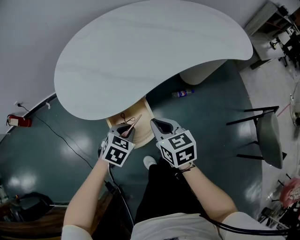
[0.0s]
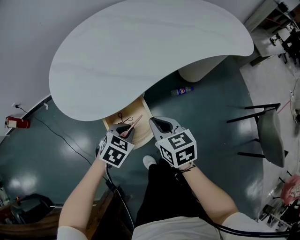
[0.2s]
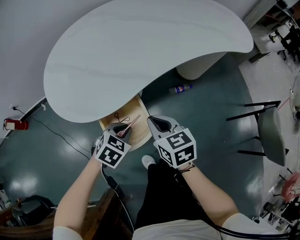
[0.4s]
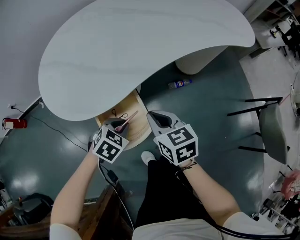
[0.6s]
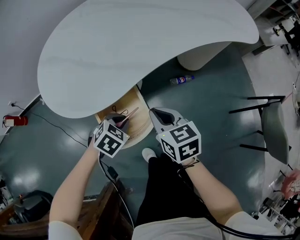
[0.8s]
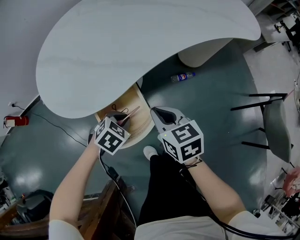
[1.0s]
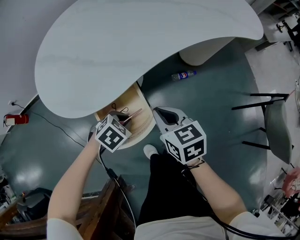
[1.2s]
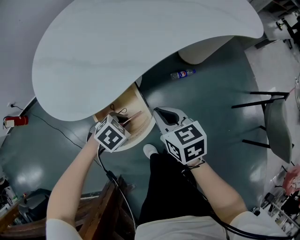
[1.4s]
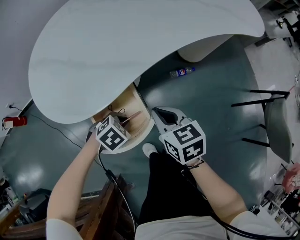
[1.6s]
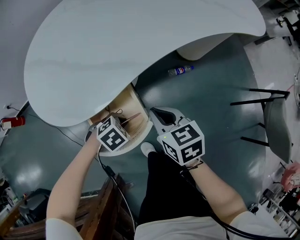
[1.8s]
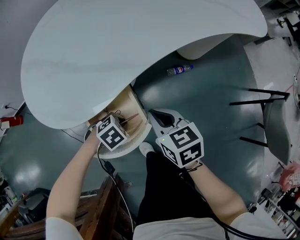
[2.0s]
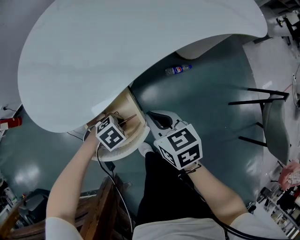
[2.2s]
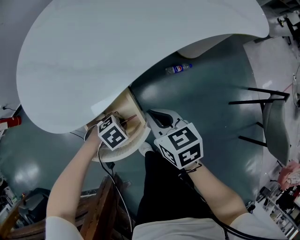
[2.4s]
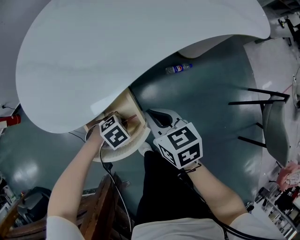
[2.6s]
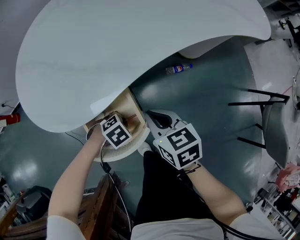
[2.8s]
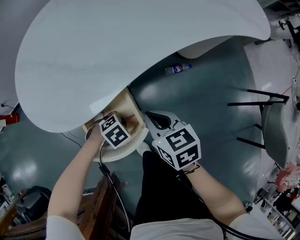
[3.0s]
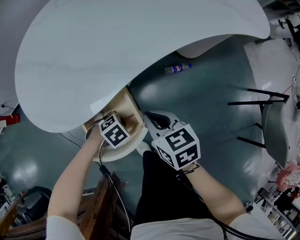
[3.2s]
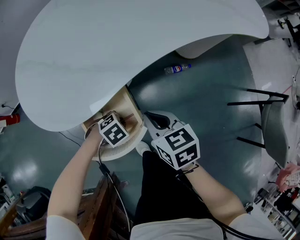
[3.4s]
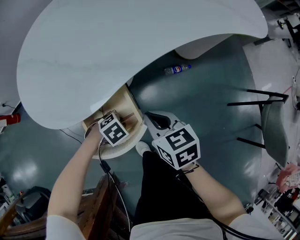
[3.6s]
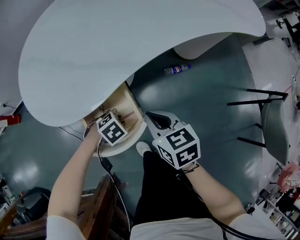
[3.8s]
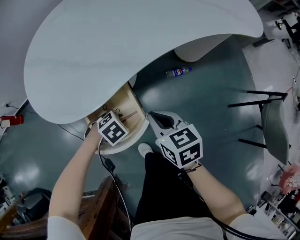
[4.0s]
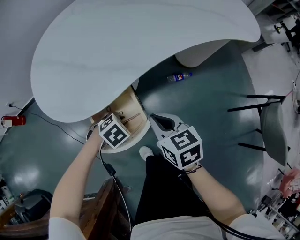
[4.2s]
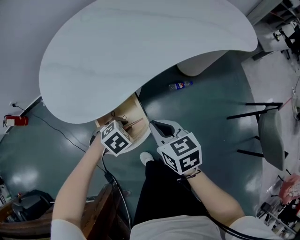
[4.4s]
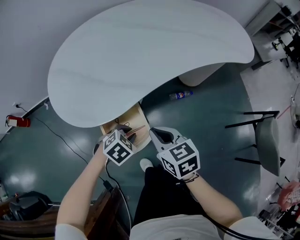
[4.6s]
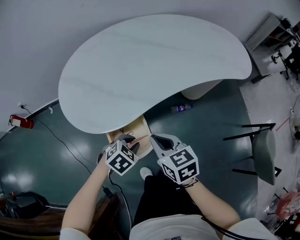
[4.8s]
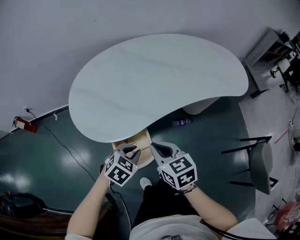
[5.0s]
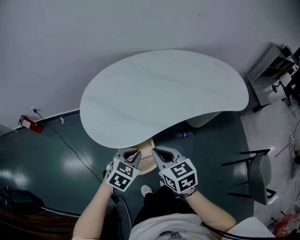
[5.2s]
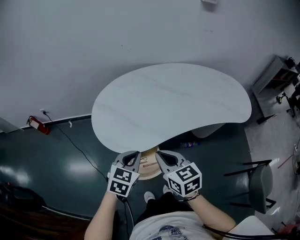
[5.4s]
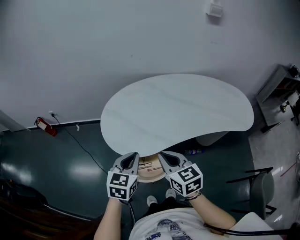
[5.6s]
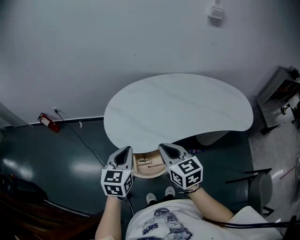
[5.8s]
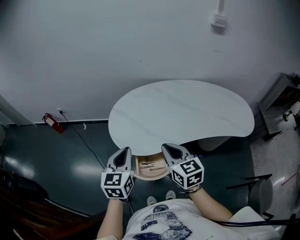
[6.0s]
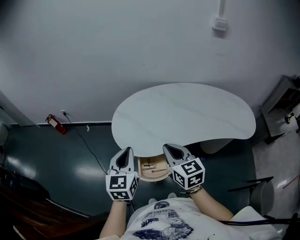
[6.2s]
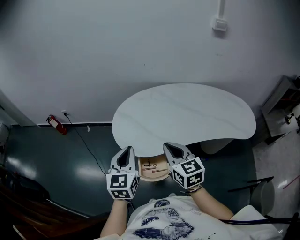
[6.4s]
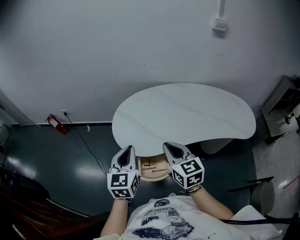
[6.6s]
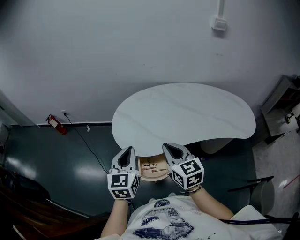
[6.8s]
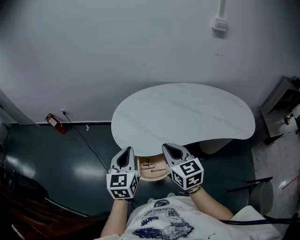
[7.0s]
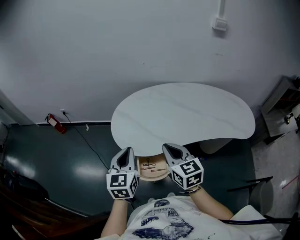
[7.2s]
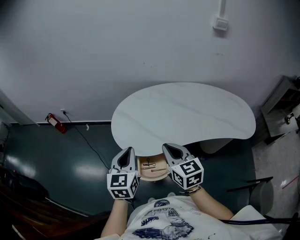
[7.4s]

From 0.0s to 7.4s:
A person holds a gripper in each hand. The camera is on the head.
From 0.0s to 1.4s: The right gripper is displaced downward by about 5 cm, while the left gripper moves downward, roughly 10 cm, and rotates roughly 30 degrees.
From 1.4s to 3.0s: The left gripper is displaced downward by approximately 10 cm.
From 3.0s to 4.4s: The left gripper moves upward, some 10 cm, while the right gripper is displaced upward by approximately 5 cm.
From 4.4s to 6.0s: The two grippers go approximately 35 cm upward. The left gripper tips its fingers upward by about 50 degrees; the right gripper changes its angle by some 30 degrees.
From 6.0s to 7.4s: The grippers stay close to where they were, moving slightly.

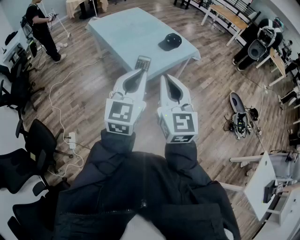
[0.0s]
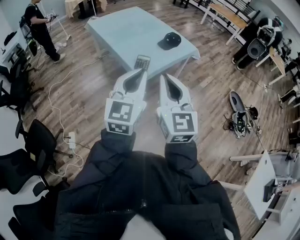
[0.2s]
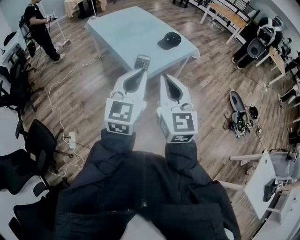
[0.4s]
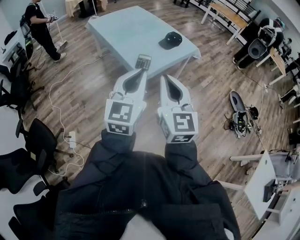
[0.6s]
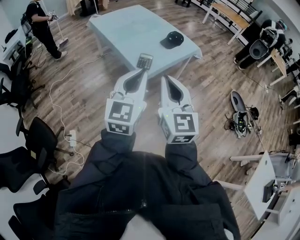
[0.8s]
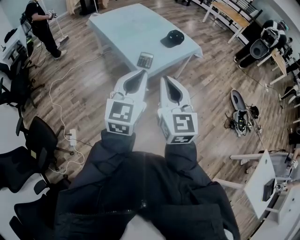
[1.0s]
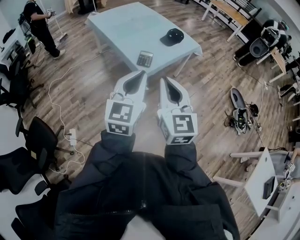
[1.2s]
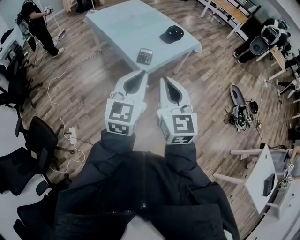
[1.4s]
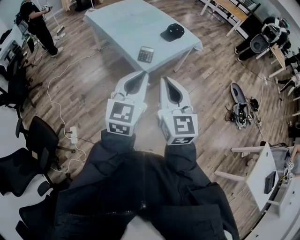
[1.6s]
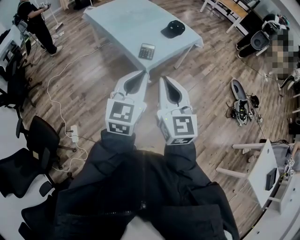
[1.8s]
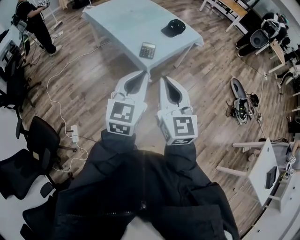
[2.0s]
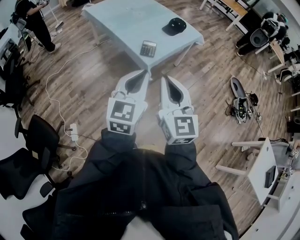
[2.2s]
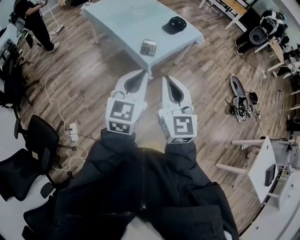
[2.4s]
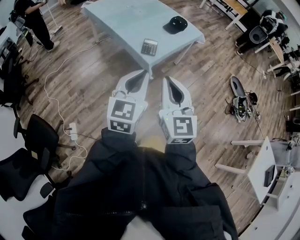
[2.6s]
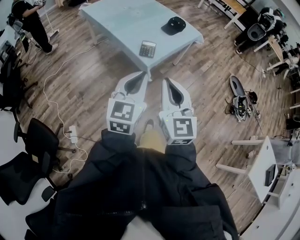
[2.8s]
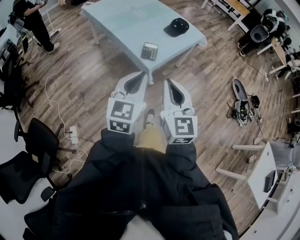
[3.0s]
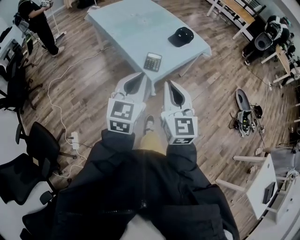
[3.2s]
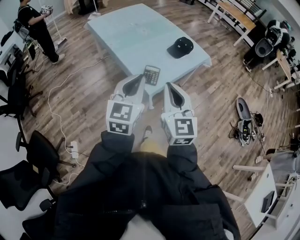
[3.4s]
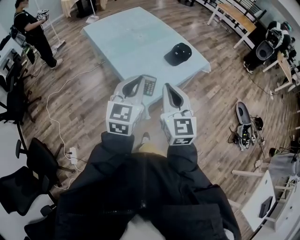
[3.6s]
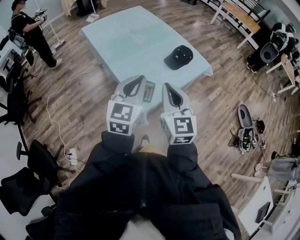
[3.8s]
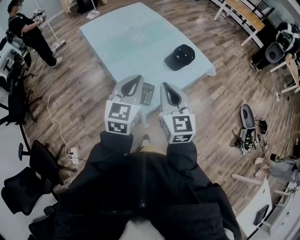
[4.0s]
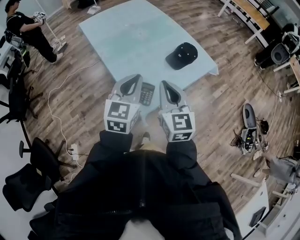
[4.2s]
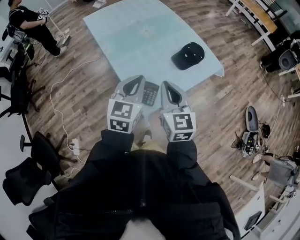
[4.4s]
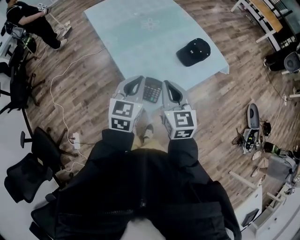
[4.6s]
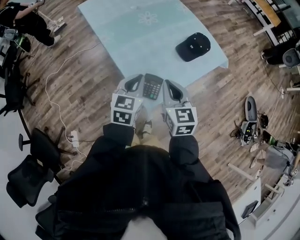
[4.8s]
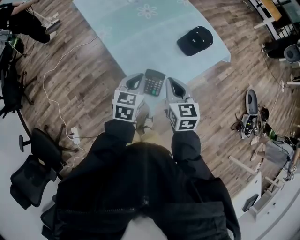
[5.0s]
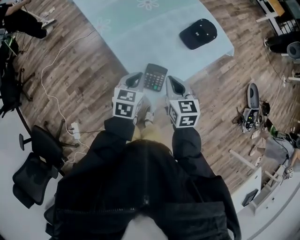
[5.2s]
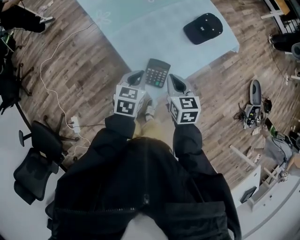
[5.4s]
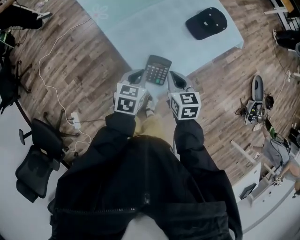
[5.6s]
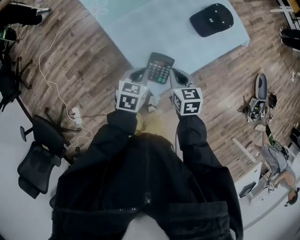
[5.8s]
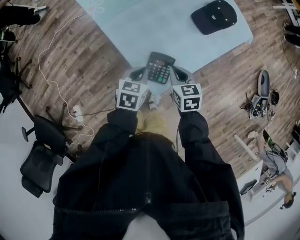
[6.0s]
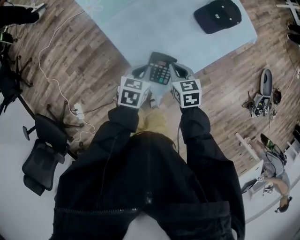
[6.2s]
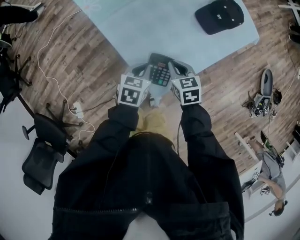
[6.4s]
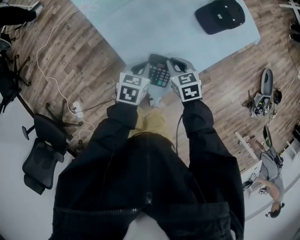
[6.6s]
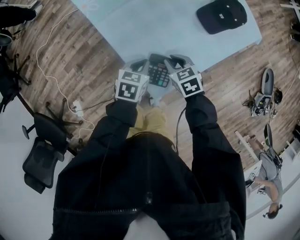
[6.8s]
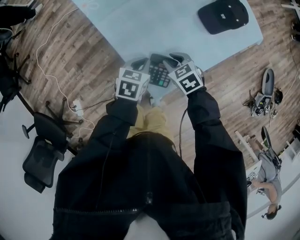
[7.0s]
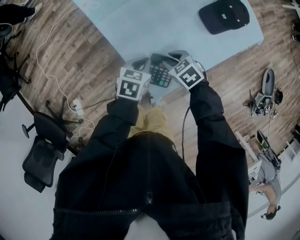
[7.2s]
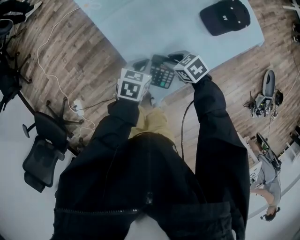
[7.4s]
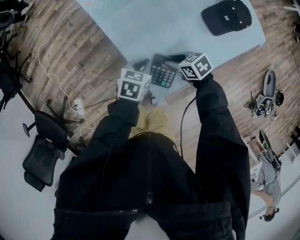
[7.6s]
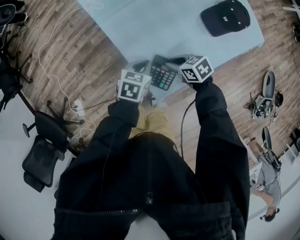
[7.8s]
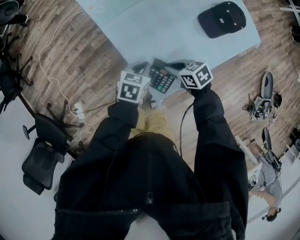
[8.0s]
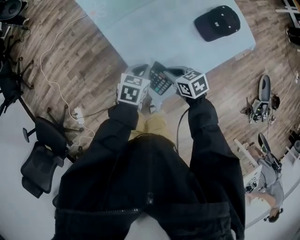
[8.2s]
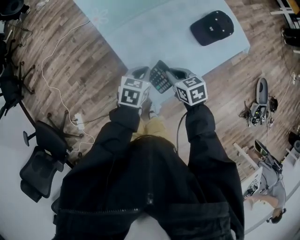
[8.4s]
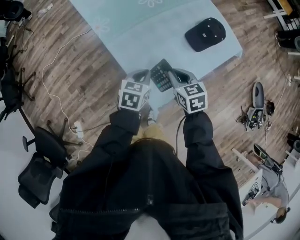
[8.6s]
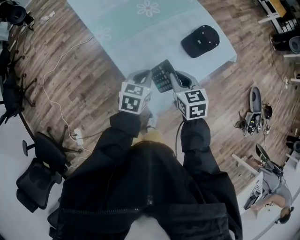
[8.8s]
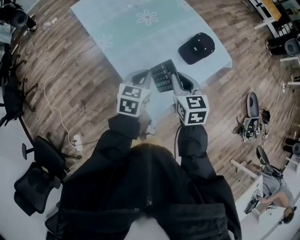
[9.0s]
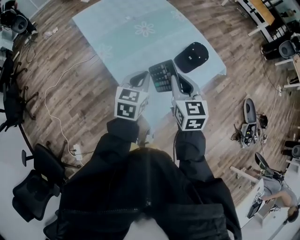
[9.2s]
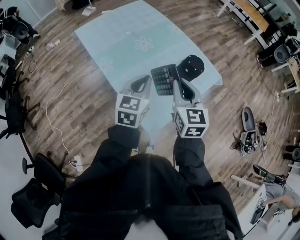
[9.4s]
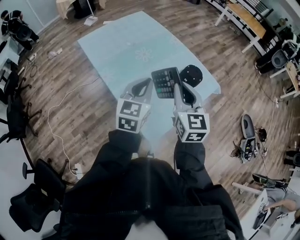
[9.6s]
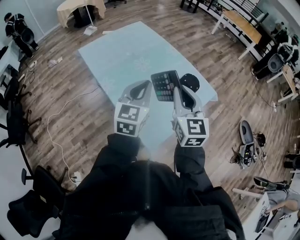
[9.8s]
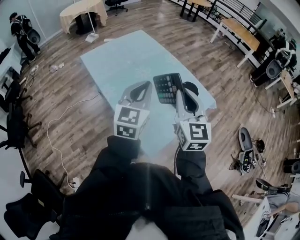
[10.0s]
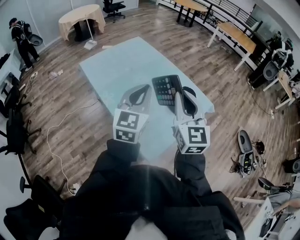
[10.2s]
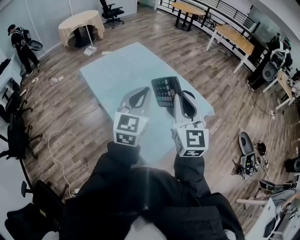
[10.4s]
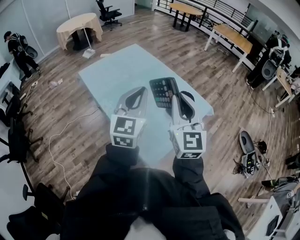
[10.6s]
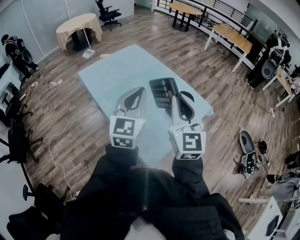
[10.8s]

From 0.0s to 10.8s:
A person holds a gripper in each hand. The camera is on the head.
From 0.0s to 1.6s: The left gripper shifts by approximately 5 cm. Meanwhile the right gripper shifts by roughly 5 cm.
From 1.6s to 3.0s: Both grippers move downward and forward, about 10 cm.
From 3.0s to 4.6s: The two grippers go approximately 40 cm forward.
From 4.6s to 6.2s: Both grippers move downward, some 30 cm. The left gripper rotates approximately 40 degrees. The right gripper tips its fingers downward by some 30 degrees.
From 6.2s to 7.8s: The right gripper goes about 5 cm downward, and swivels approximately 40 degrees.
From 7.8s to 9.2s: Both grippers travel together upward, some 30 cm. The right gripper changes its angle by approximately 60 degrees; the left gripper changes its angle by roughly 30 degrees.
From 9.2s to 10.8s: Both grippers move upward, about 20 cm. The left gripper rotates roughly 30 degrees; the right gripper turns by about 30 degrees.

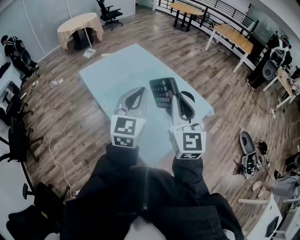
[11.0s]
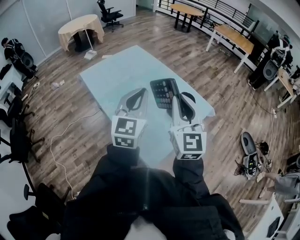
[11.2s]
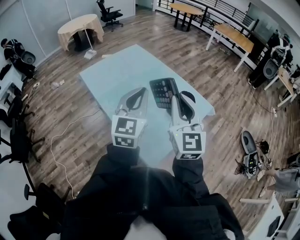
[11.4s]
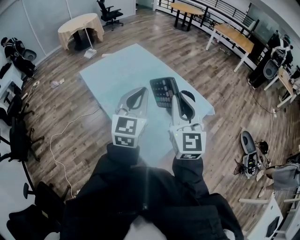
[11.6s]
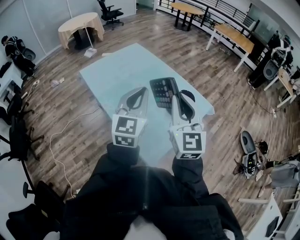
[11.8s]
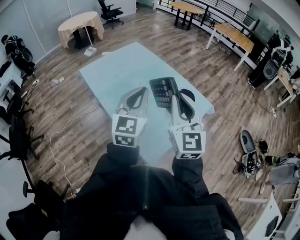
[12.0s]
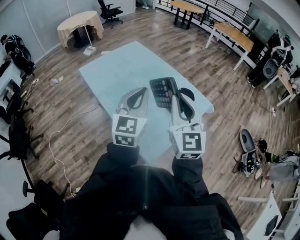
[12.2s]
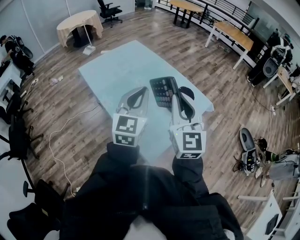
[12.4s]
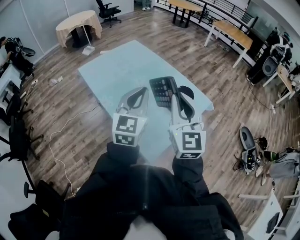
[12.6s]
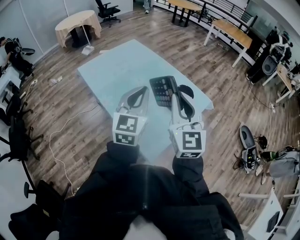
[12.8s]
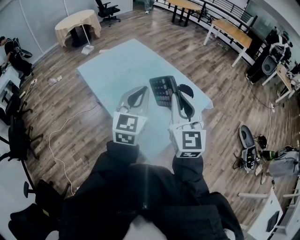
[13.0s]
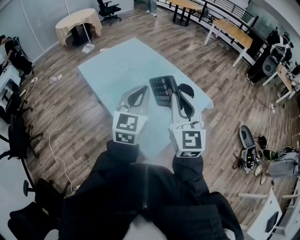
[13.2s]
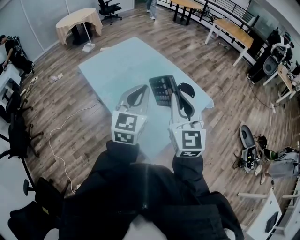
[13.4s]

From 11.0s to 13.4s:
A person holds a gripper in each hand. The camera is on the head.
From 11.0s to 13.4s: The grippers make only small movements.

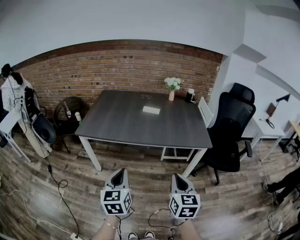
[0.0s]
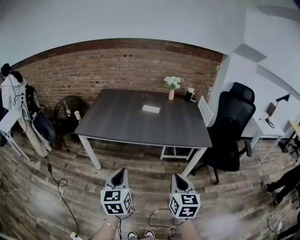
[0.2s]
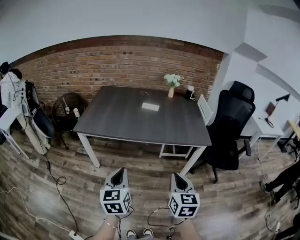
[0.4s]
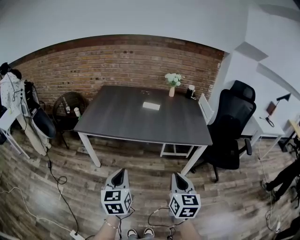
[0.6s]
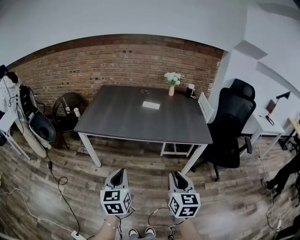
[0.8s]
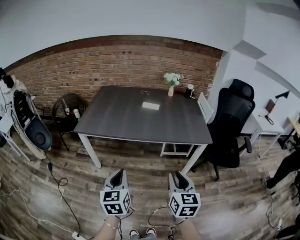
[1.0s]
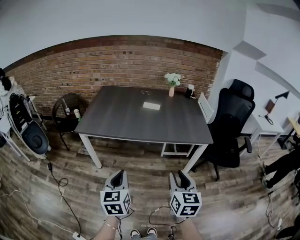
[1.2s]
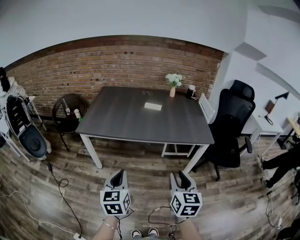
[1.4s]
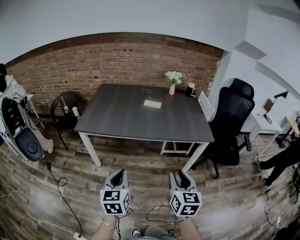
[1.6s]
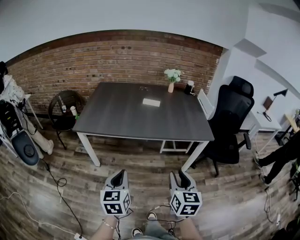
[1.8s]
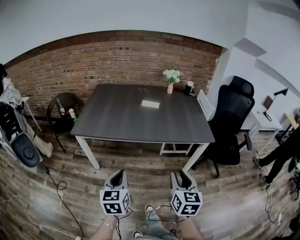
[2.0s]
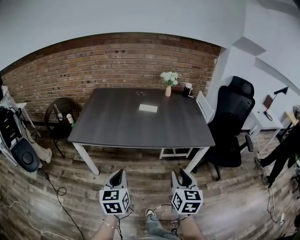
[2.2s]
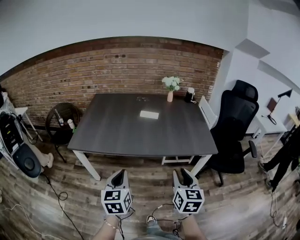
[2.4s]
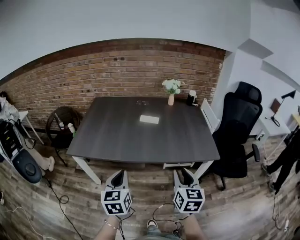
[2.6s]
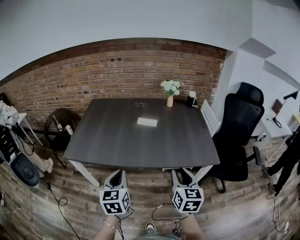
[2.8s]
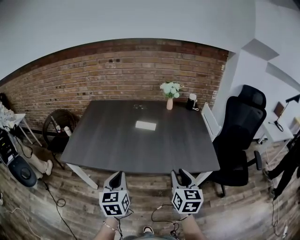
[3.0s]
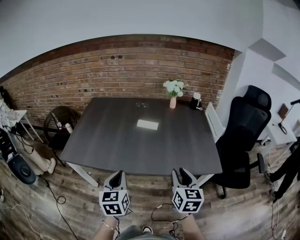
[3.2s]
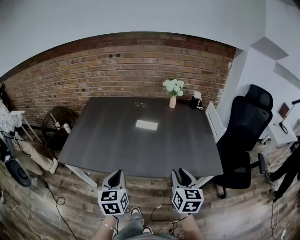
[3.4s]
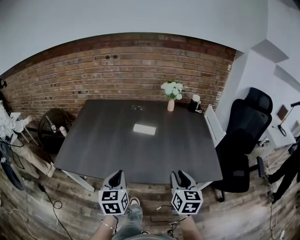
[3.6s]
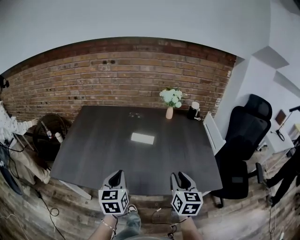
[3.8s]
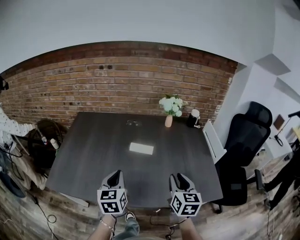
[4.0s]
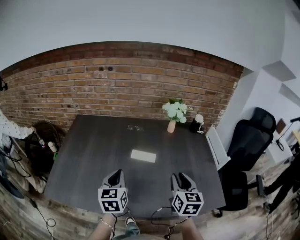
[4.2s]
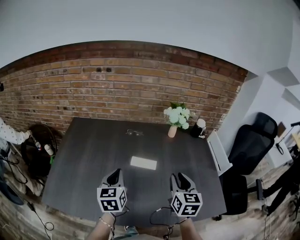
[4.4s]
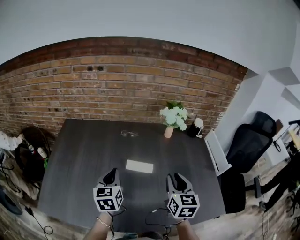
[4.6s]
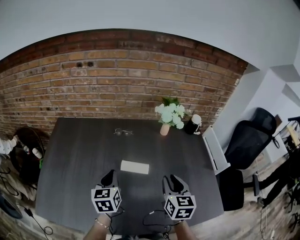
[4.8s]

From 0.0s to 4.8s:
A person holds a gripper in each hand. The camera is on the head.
From 0.0s to 1.6s: The left gripper moves approximately 5 cm, while the right gripper opens its fingers.
From 1.6s to 3.2s: The two grippers go some 30 cm forward.
From 3.2s to 4.8s: The two grippers go roughly 40 cm forward.
